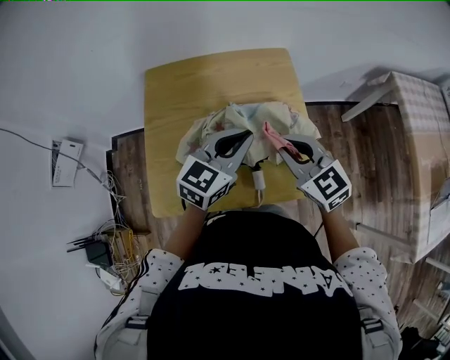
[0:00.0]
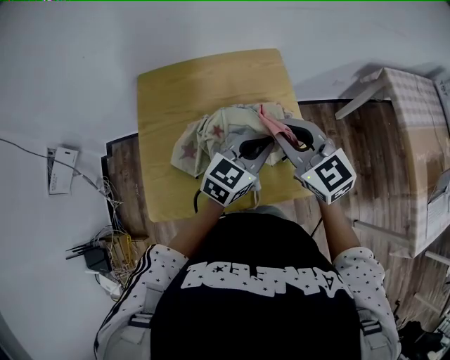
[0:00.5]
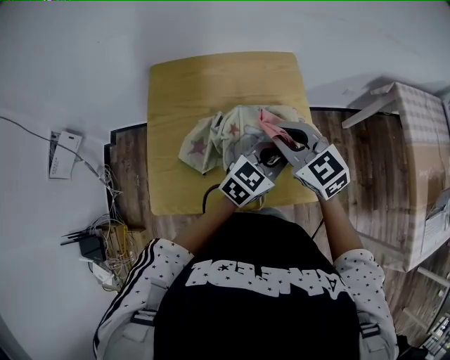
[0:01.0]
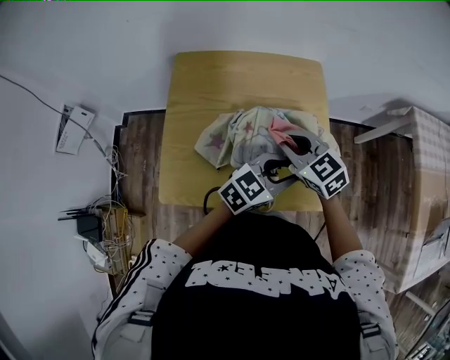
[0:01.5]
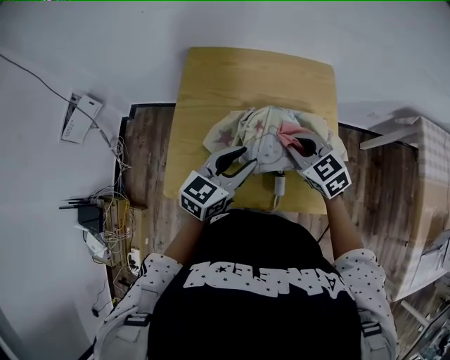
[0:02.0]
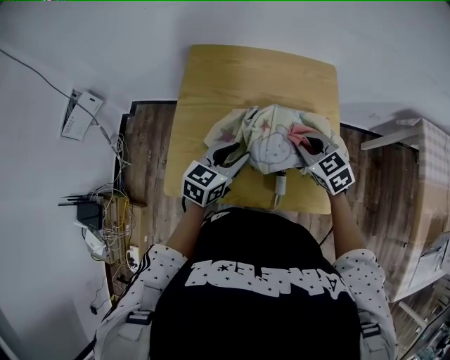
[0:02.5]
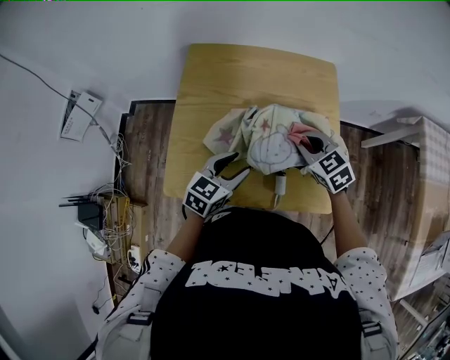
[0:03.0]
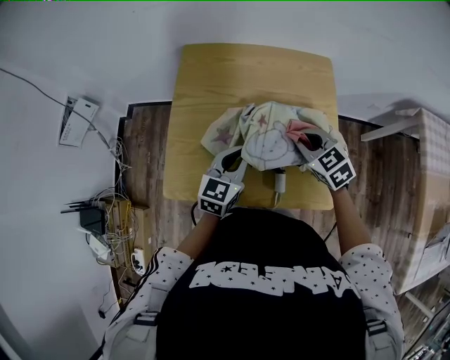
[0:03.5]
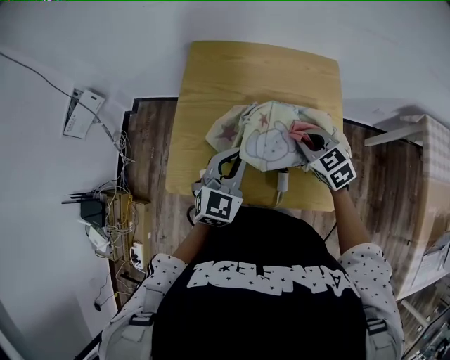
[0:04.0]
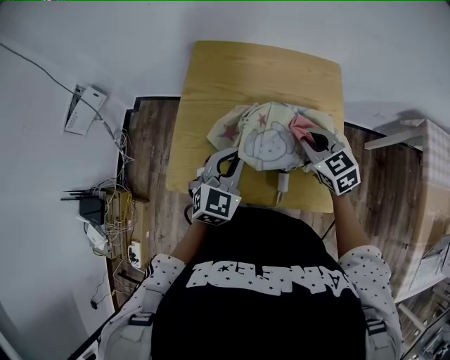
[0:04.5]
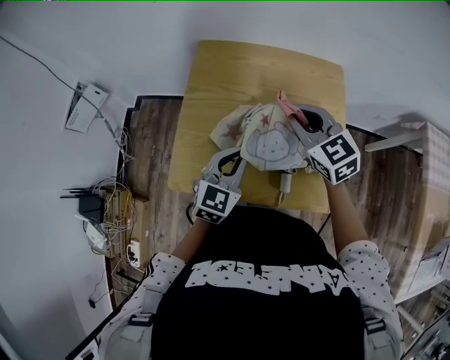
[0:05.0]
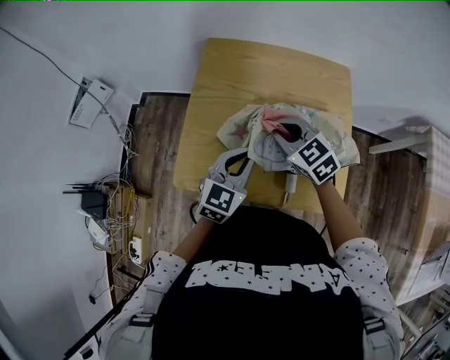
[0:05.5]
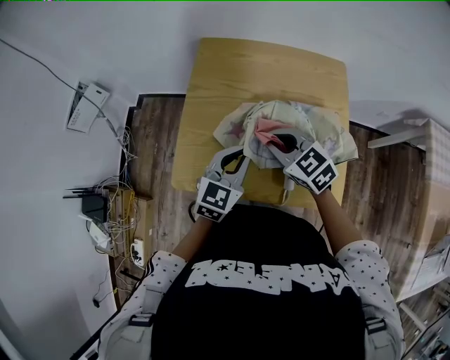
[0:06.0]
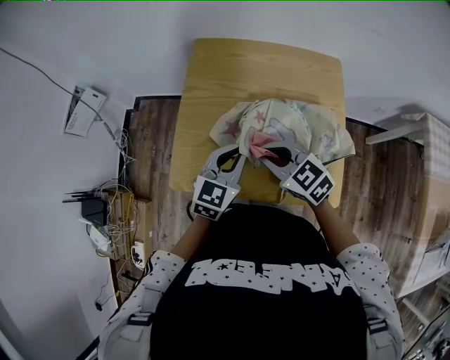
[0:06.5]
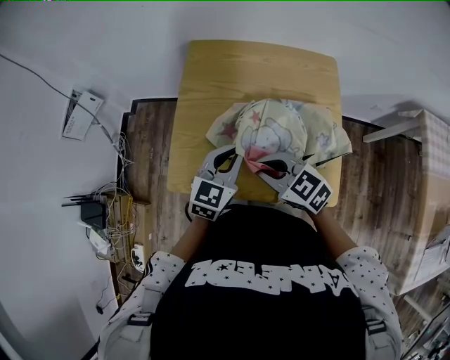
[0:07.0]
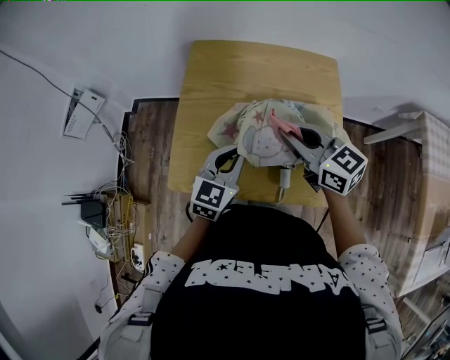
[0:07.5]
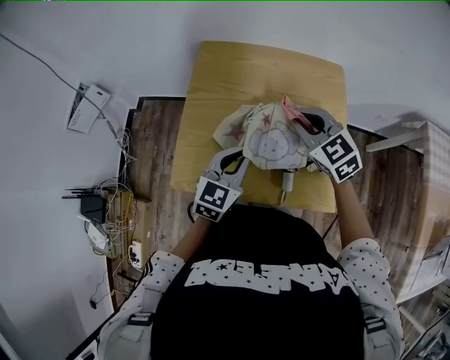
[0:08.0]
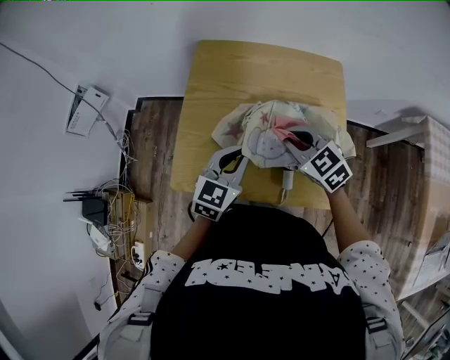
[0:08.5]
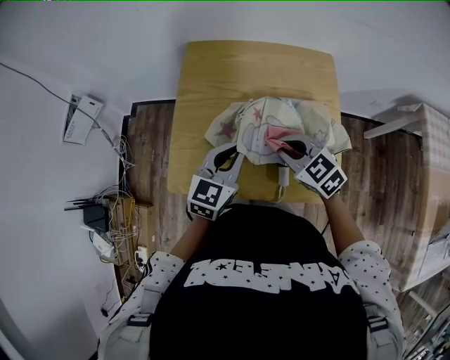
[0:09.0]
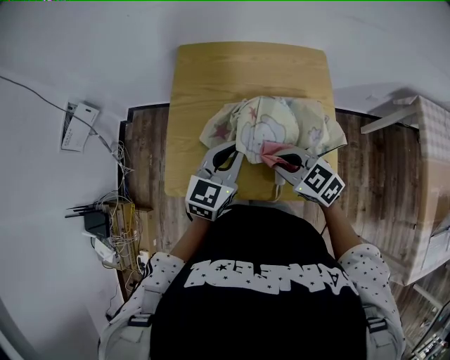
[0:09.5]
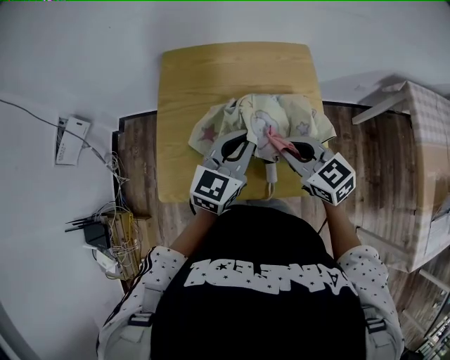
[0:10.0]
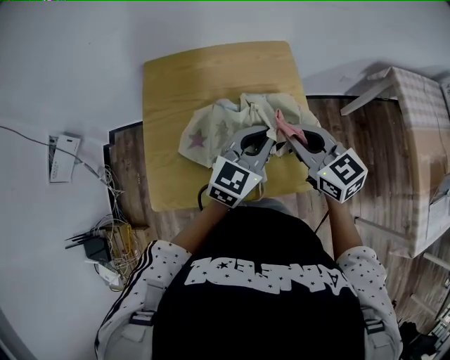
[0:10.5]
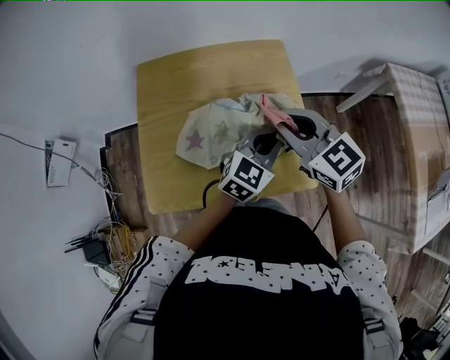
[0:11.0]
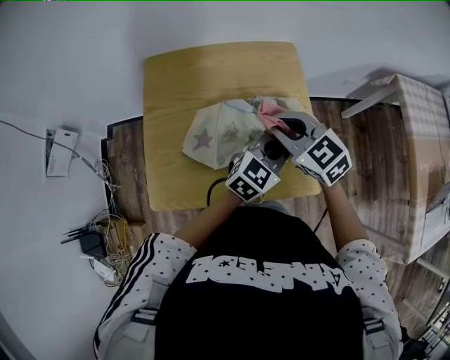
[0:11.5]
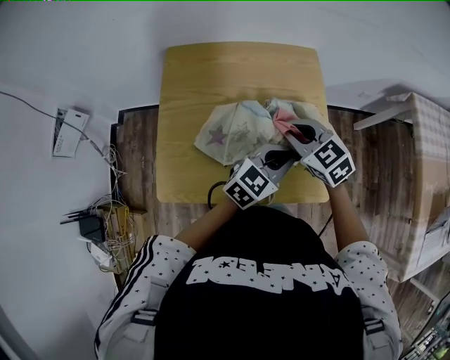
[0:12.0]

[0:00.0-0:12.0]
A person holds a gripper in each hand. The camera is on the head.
0:00.0 to 0:02.0: The right gripper heads downward and to the left, covering approximately 10 cm. The left gripper is displaced to the left and downward by about 10 cm, and opens.
0:02.0 to 0:04.0: The left gripper travels downward and back again, some 10 cm each way, changes its angle by approximately 30 degrees, and closes its fingers.
0:04.0 to 0:06.0: The right gripper goes some 10 cm to the left.
0:06.0 to 0:08.0: The right gripper travels to the right and upward by roughly 10 cm.
0:08.0 to 0:10.0: The left gripper goes roughly 10 cm to the right and upward. Meanwhile the right gripper shifts roughly 10 cm backward.
0:10.0 to 0:12.0: The right gripper travels forward by roughly 5 cm, and goes upward and returns, roughly 10 cm each way. Meanwhile the left gripper shifts roughly 15 cm to the right and downward, and rotates about 20 degrees.

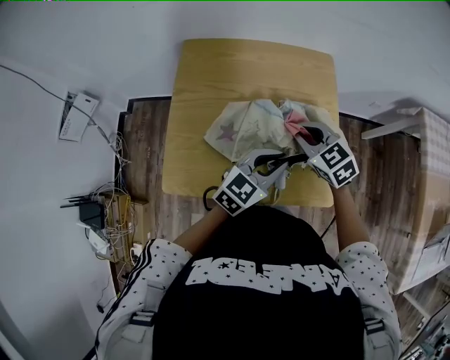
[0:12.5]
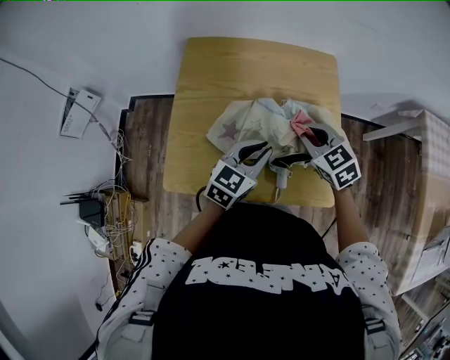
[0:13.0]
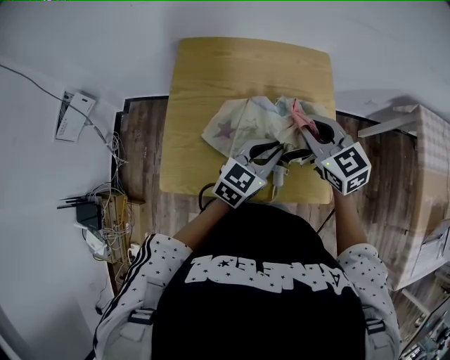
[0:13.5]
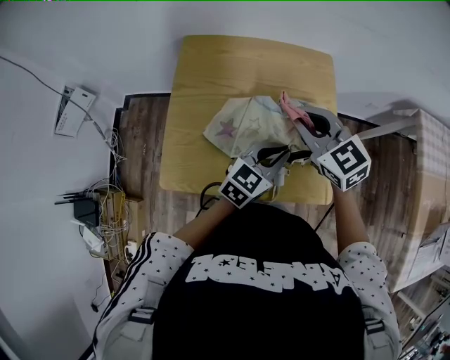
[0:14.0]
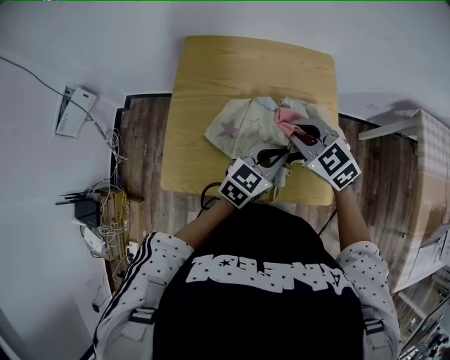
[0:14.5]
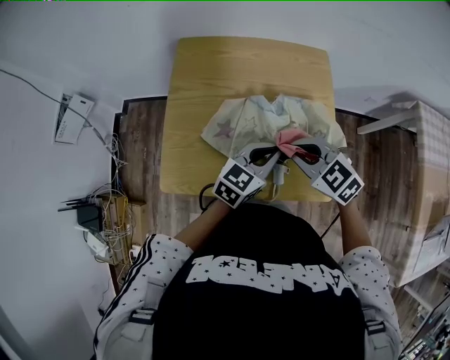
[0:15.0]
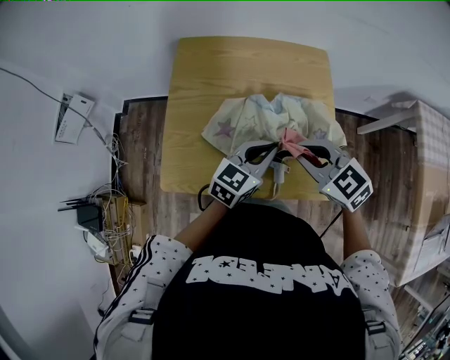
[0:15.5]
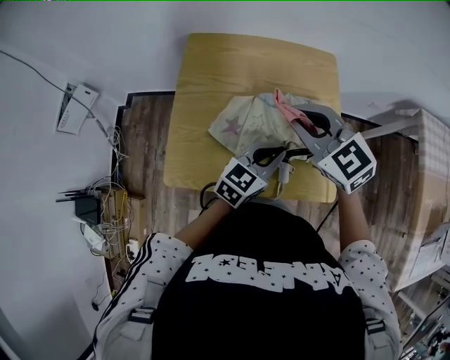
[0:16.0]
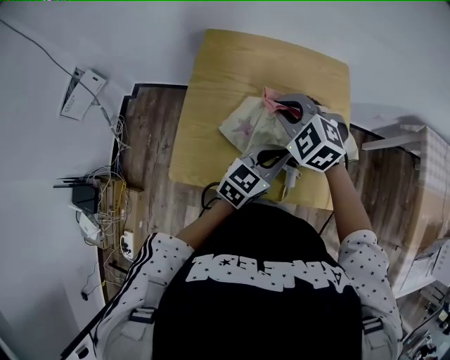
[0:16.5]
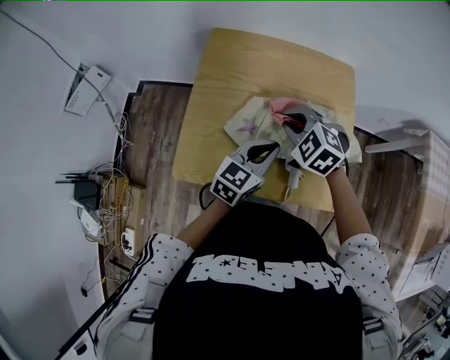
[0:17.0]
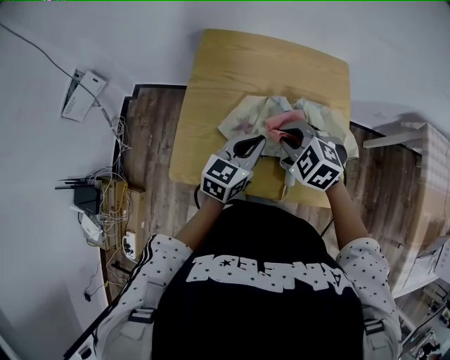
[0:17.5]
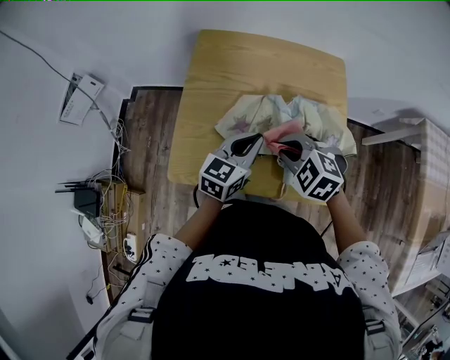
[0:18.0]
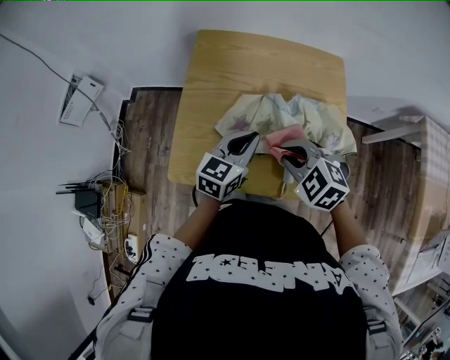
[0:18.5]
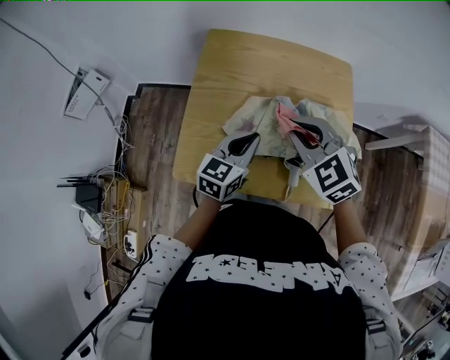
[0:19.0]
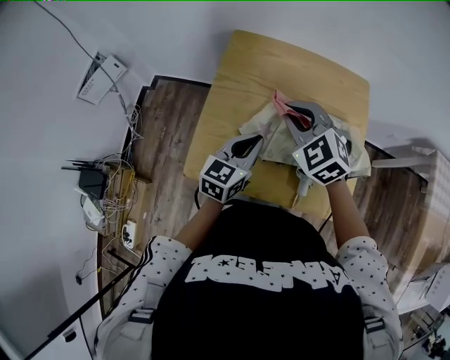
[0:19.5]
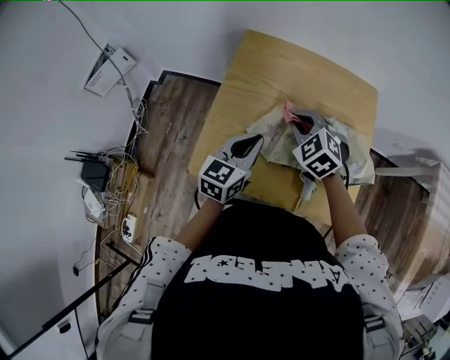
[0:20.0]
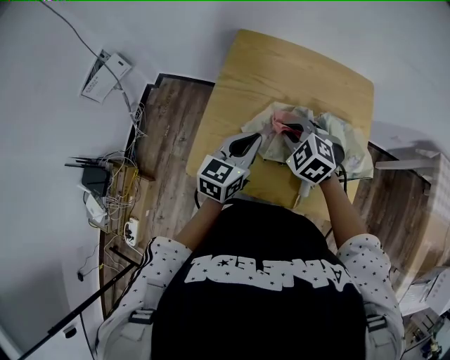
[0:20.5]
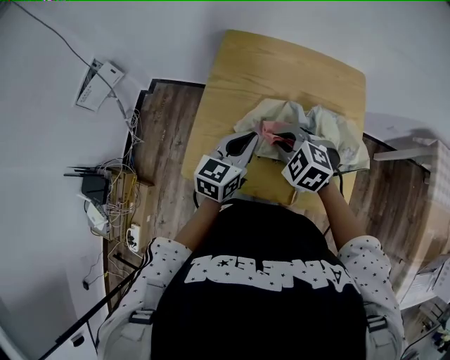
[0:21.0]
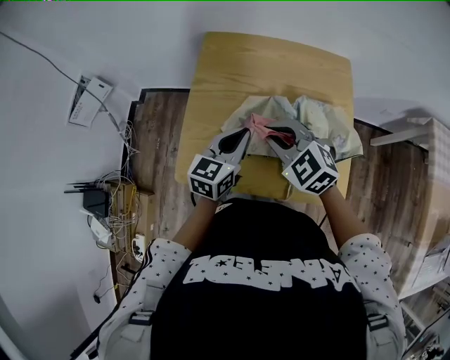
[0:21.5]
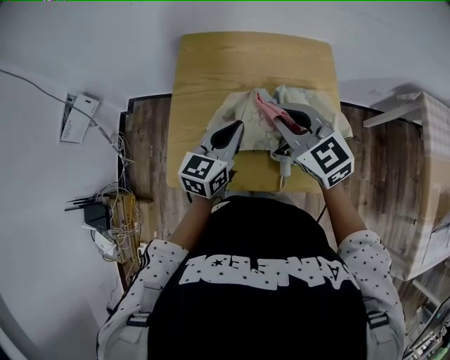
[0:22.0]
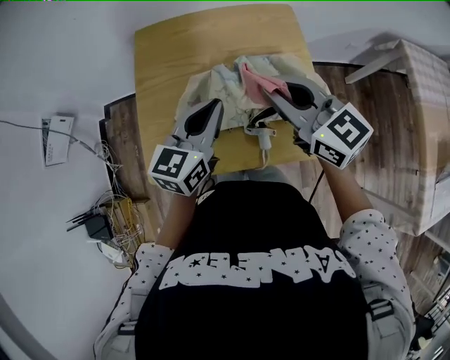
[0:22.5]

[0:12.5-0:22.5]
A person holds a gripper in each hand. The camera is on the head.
0:12.5 to 0:14.5: The right gripper travels upward and back again, roughly 10 cm each way.
0:14.5 to 0:16.5: The right gripper is displaced to the left by approximately 10 cm, and changes its angle by some 20 degrees.
0:16.5 to 0:18.5: The right gripper travels backward by about 10 cm, while the left gripper is displaced to the left by approximately 5 cm.
0:18.5 to 0:20.5: The left gripper moves to the left, roughly 5 cm. Meanwhile the right gripper moves forward and to the left, approximately 10 cm.
0:20.5 to 0:22.5: The right gripper shifts approximately 20 cm upward and to the right, and tilts its fingers roughly 40 degrees upward, while the left gripper is displaced to the right and upward by some 10 cm.

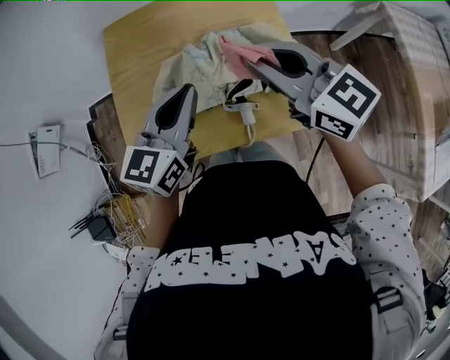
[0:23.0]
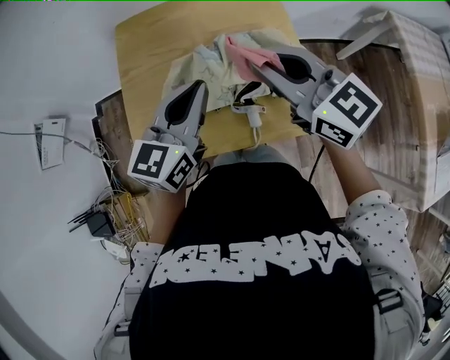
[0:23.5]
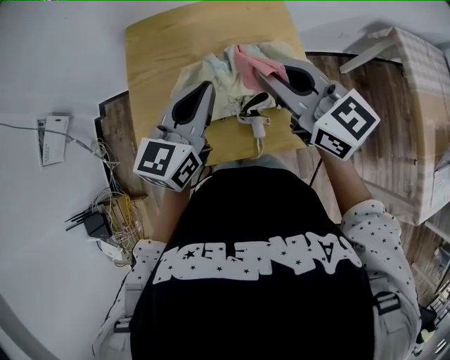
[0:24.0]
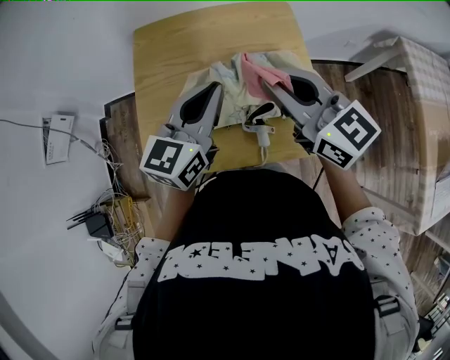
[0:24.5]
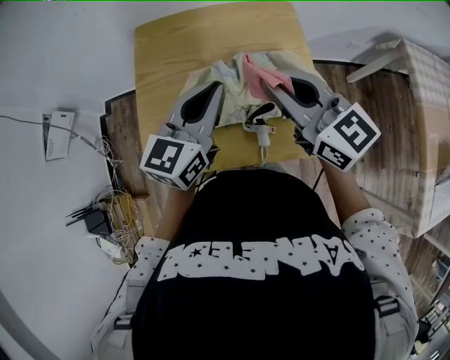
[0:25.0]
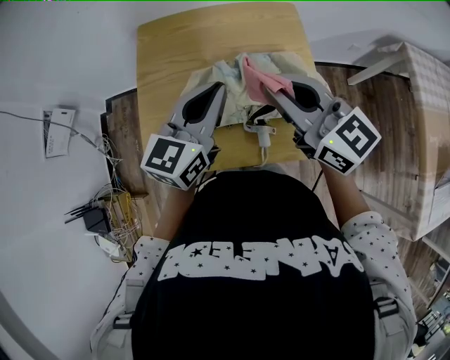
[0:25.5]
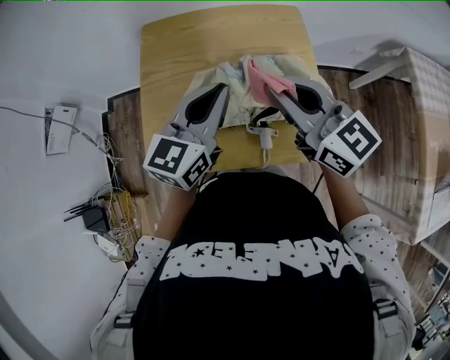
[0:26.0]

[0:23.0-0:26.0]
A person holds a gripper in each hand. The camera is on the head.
0:23.0 to 0:24.5: There are only small adjustments of the grippers.
0:24.5 to 0:26.0: Both grippers stay put.

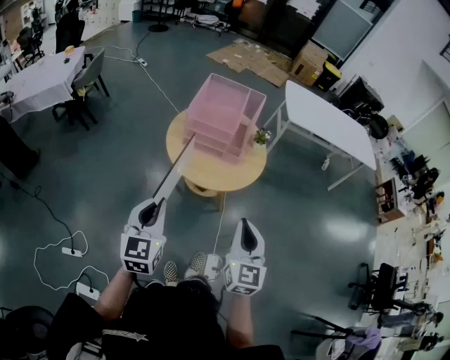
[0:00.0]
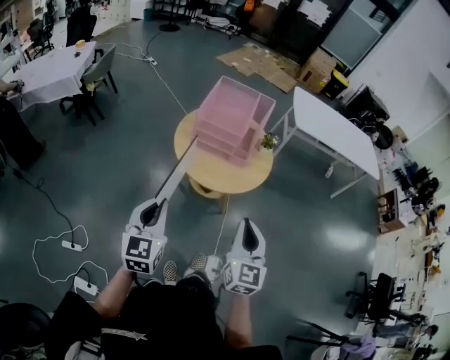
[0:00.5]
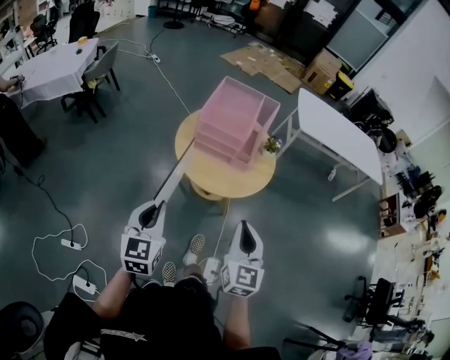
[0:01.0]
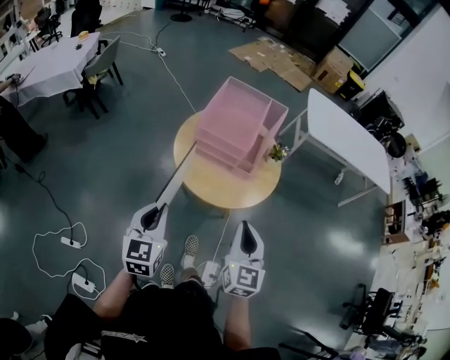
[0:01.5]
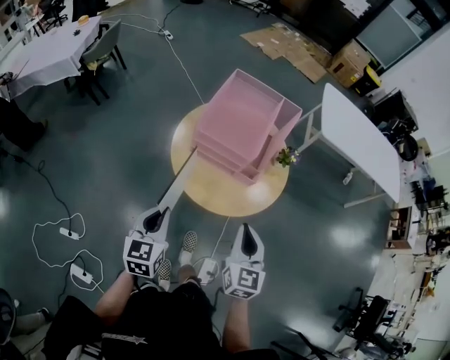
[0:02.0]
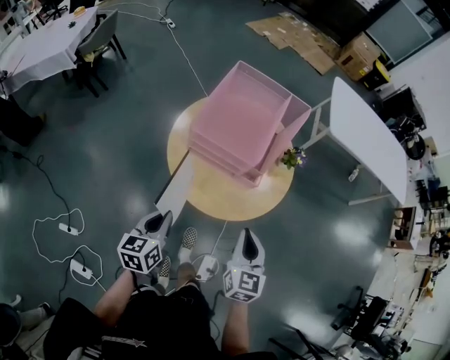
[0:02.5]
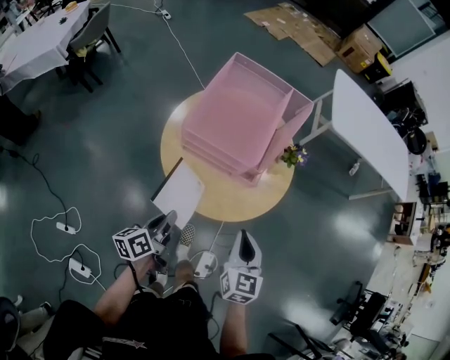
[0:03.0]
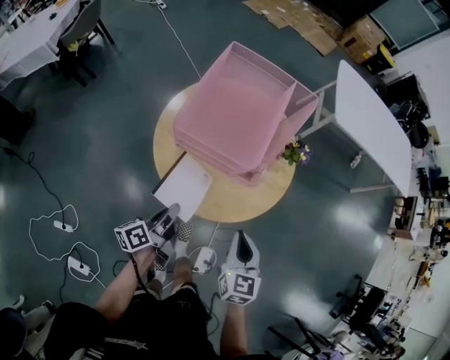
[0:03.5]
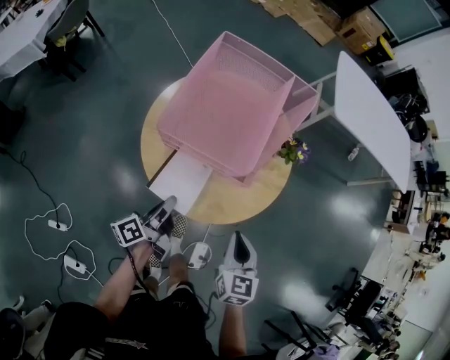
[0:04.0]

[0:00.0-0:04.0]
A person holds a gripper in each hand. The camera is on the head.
0:00.0 to 0:02.0: Both grippers move forward and downward, about 20 cm.
0:02.0 to 0:04.0: The two grippers go roughly 15 cm downward and forward. The left gripper rolls counterclockwise, seen from behind, by roughly 70 degrees.
